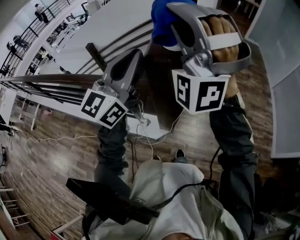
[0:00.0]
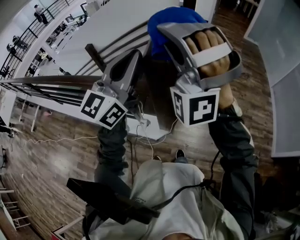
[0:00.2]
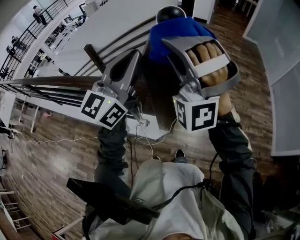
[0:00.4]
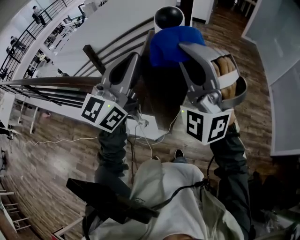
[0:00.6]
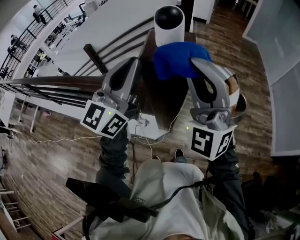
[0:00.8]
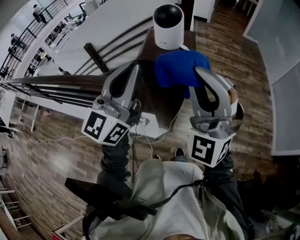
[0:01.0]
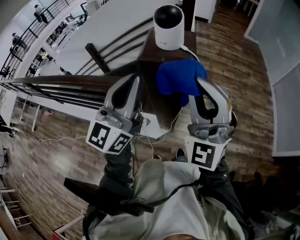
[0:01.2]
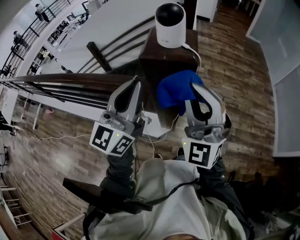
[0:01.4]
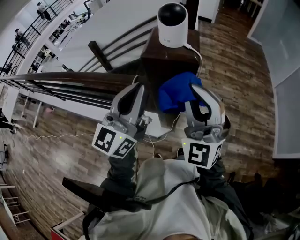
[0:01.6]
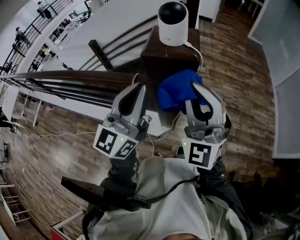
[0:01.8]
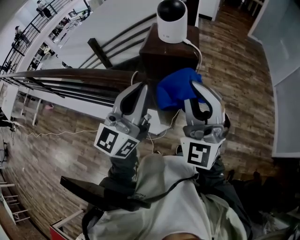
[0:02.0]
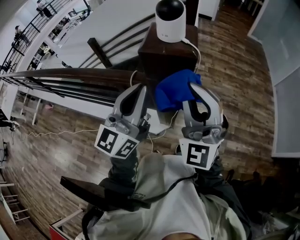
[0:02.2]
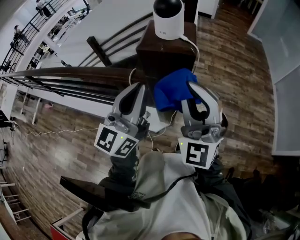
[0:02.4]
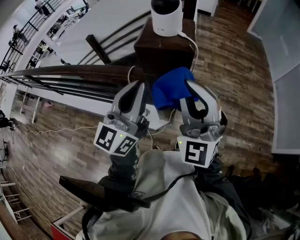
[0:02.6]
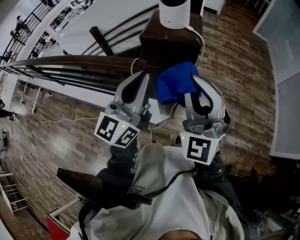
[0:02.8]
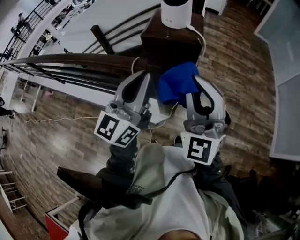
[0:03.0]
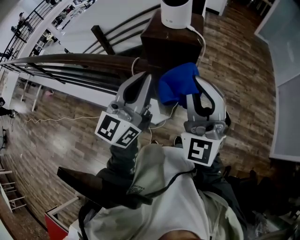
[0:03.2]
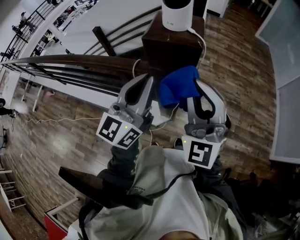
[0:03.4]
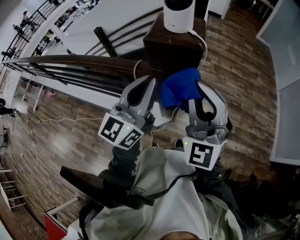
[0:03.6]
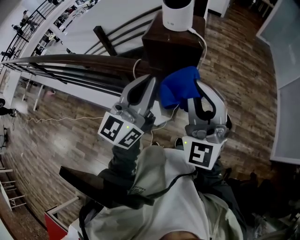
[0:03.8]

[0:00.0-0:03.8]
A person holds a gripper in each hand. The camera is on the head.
0:00.0 to 0:01.2: The right gripper goes some 15 cm downward, backward and to the right, and twists about 40 degrees clockwise, seen from behind, while the left gripper shifts approximately 5 cm backward.
0:01.2 to 0:02.6: The left gripper shifts by approximately 5 cm.
0:02.6 to 0:03.8: There are only small adjustments of the grippers.

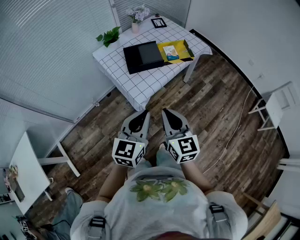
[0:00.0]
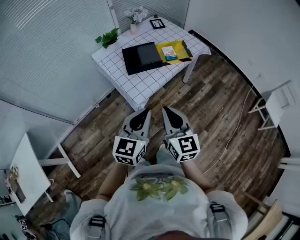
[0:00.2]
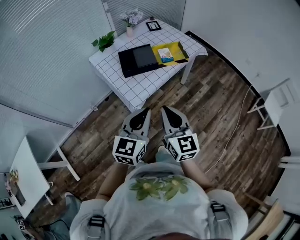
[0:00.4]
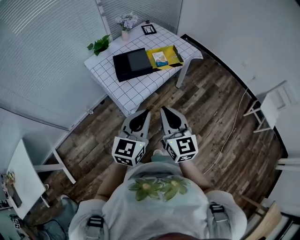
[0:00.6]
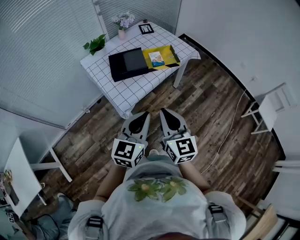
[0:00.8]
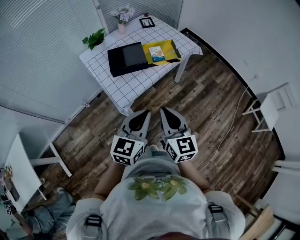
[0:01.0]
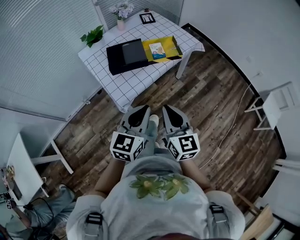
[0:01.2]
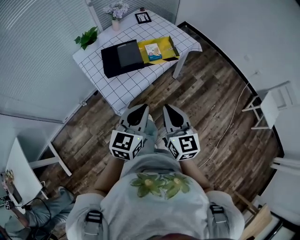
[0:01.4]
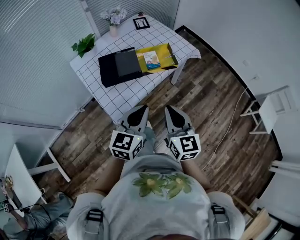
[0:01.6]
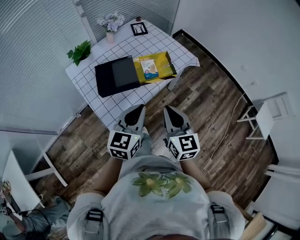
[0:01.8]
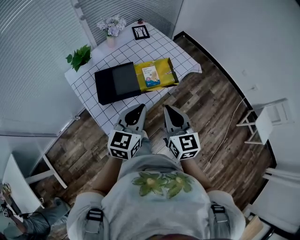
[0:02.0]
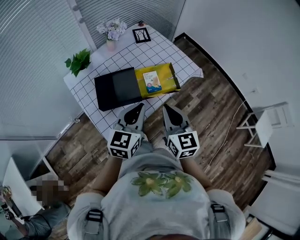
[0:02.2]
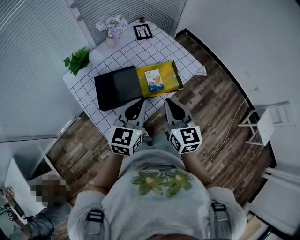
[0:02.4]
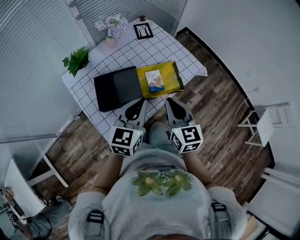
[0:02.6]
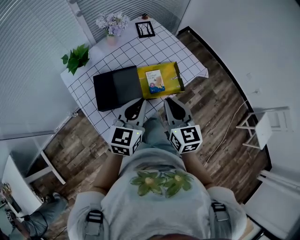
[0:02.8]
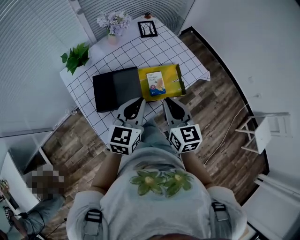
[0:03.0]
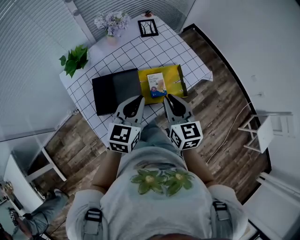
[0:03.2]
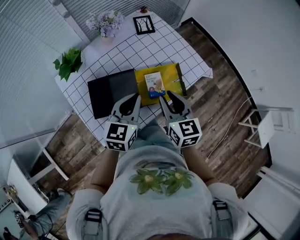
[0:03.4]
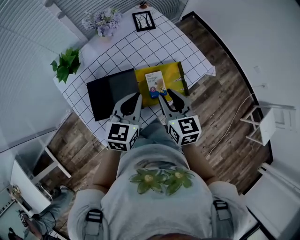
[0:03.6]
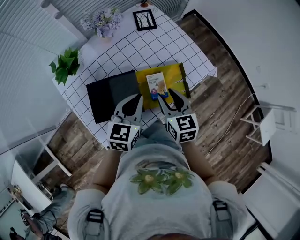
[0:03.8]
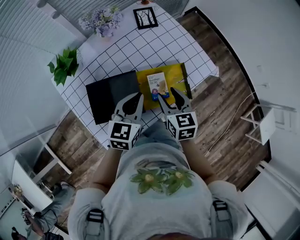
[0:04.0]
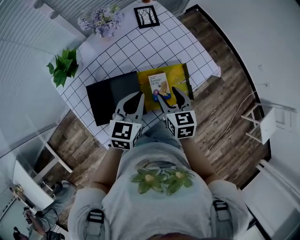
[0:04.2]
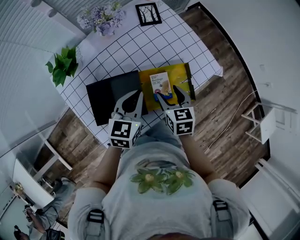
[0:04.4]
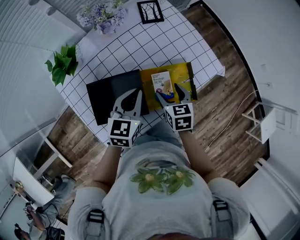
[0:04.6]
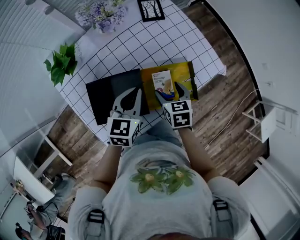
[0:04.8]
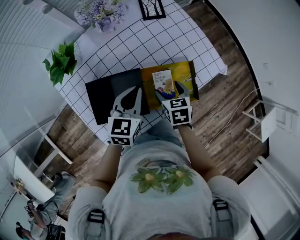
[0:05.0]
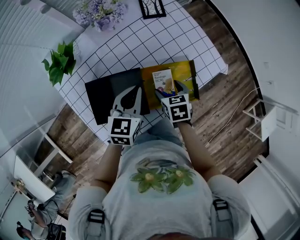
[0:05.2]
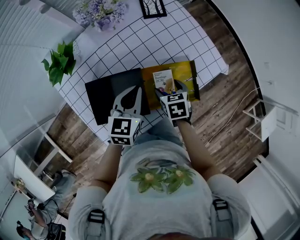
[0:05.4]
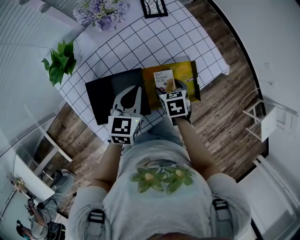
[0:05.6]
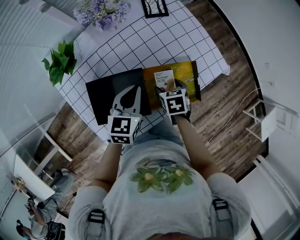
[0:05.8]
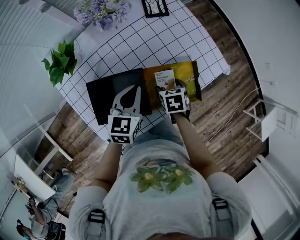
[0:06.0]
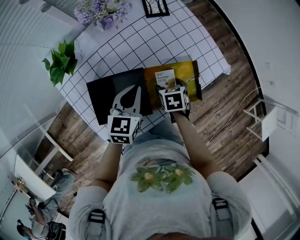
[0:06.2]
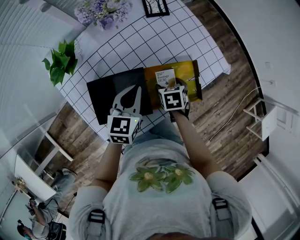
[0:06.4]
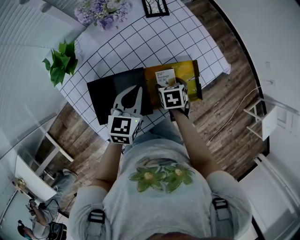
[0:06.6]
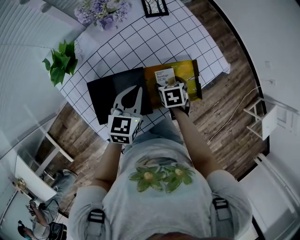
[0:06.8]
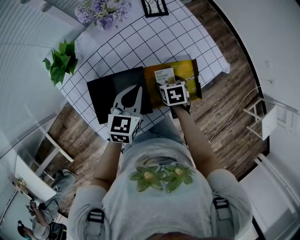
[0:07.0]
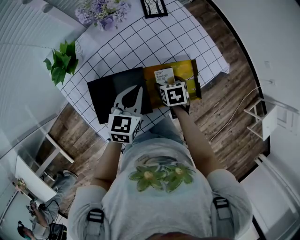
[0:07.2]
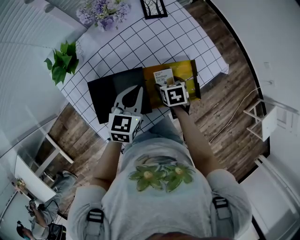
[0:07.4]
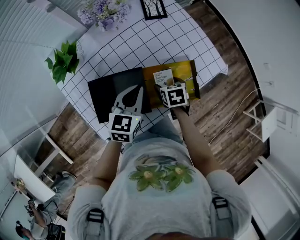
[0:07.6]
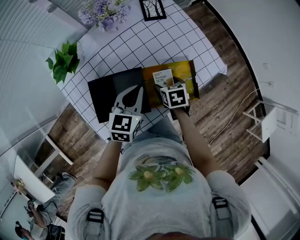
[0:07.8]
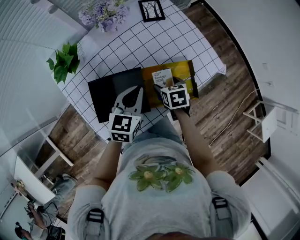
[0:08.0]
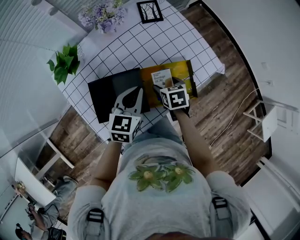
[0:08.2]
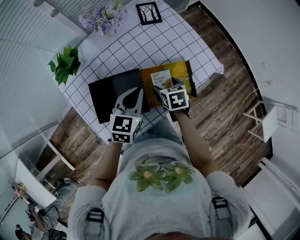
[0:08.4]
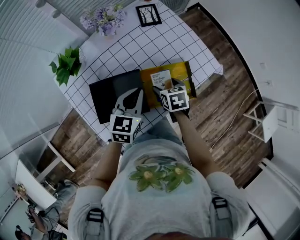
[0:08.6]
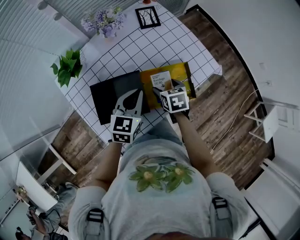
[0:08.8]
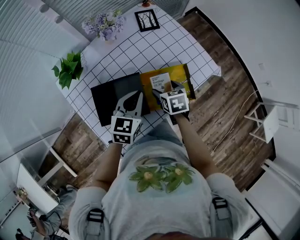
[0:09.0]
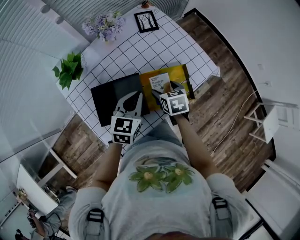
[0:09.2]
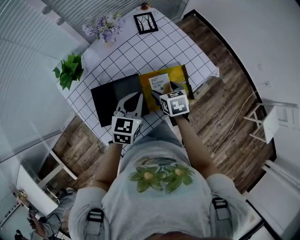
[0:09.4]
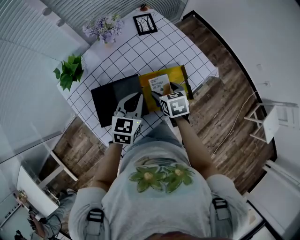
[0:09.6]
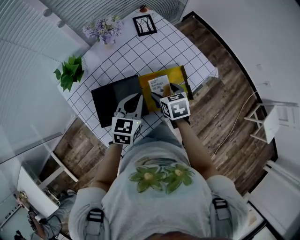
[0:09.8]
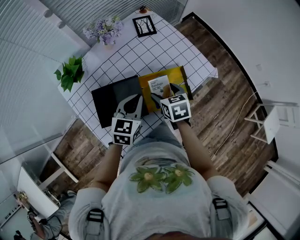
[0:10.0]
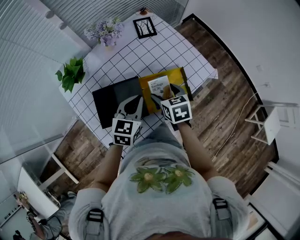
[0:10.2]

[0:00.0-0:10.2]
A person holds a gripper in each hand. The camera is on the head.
0:00.0 to 0:01.4: Both grippers travel together to the right and forward, about 15 cm.
0:01.4 to 0:03.0: The two grippers go roughly 30 cm forward.
0:03.0 to 0:04.4: The right gripper travels downward and forward by about 20 cm, turns by roughly 20 degrees, and opens up. Meanwhile the left gripper heads forward and downward, covering about 15 cm.
0:04.4 to 0:05.8: The left gripper moves roughly 5 cm. Meanwhile the right gripper shifts approximately 10 cm downward, and changes its angle by some 20 degrees.
0:05.8 to 0:07.2: The grippers make only small movements.
0:07.2 to 0:08.8: The right gripper is displaced upward by approximately 5 cm.
0:08.8 to 0:10.2: The right gripper moves upward, about 5 cm.

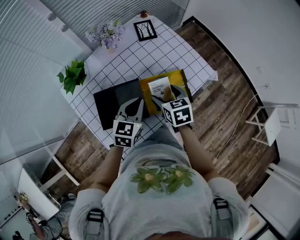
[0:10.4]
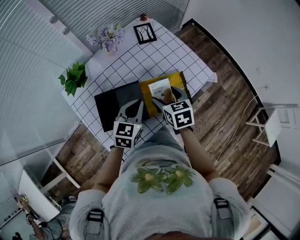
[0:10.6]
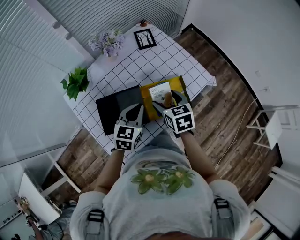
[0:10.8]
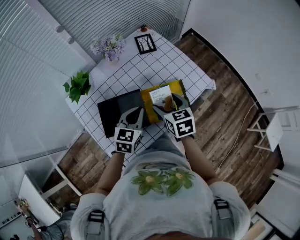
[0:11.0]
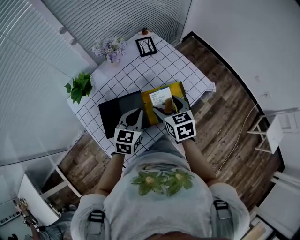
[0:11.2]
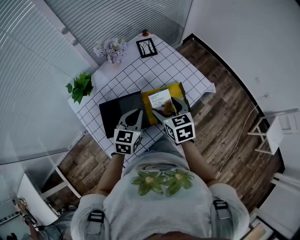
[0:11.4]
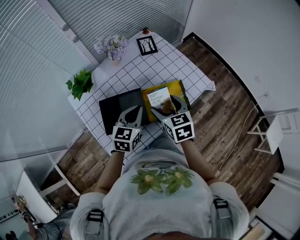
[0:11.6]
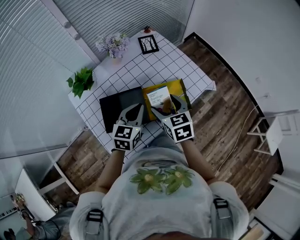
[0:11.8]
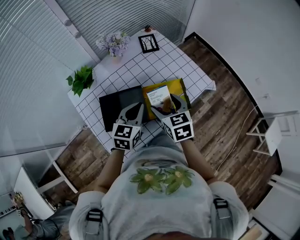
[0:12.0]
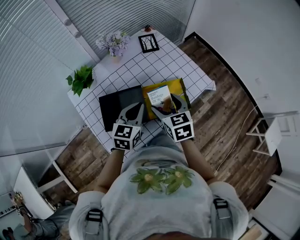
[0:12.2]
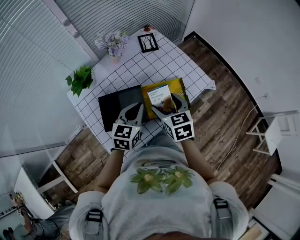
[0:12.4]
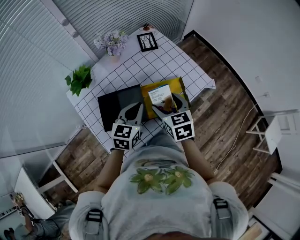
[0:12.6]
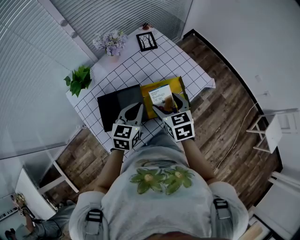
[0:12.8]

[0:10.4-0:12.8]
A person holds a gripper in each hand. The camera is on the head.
0:10.4 to 0:11.6: The right gripper goes some 5 cm upward.
0:11.6 to 0:12.8: The two grippers keep their place.

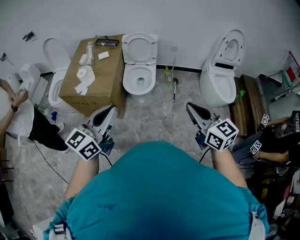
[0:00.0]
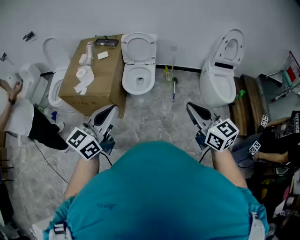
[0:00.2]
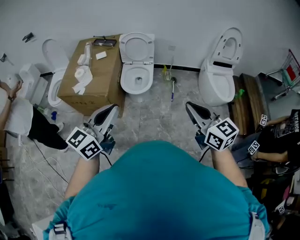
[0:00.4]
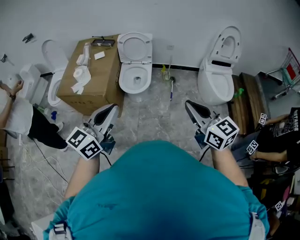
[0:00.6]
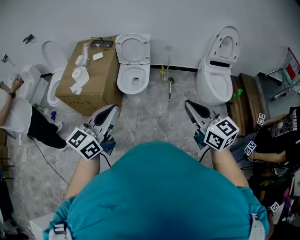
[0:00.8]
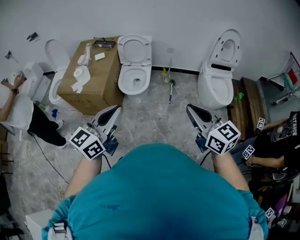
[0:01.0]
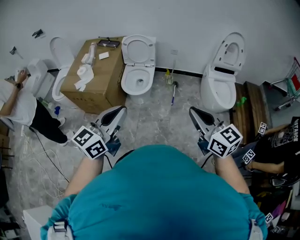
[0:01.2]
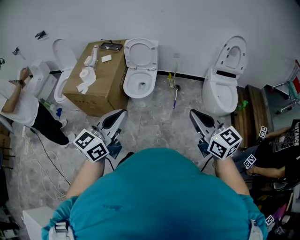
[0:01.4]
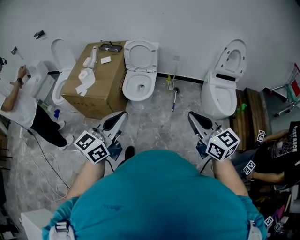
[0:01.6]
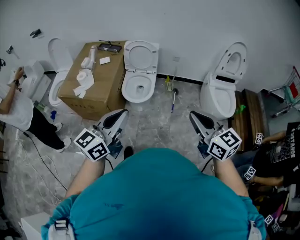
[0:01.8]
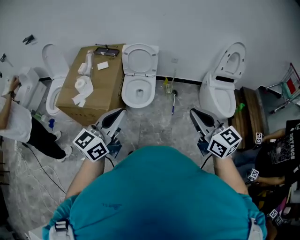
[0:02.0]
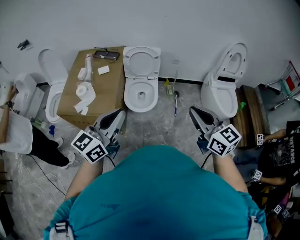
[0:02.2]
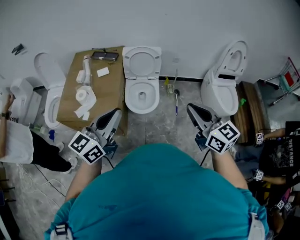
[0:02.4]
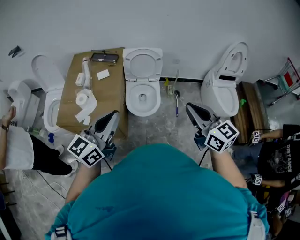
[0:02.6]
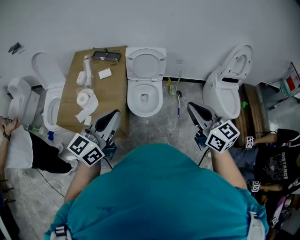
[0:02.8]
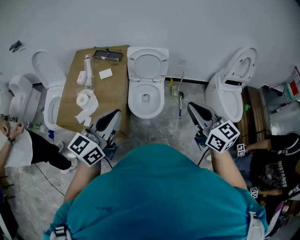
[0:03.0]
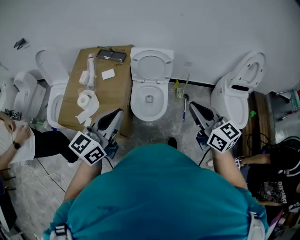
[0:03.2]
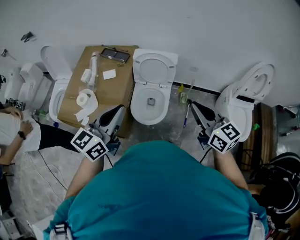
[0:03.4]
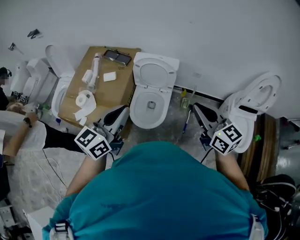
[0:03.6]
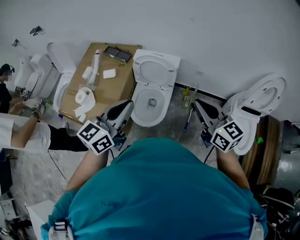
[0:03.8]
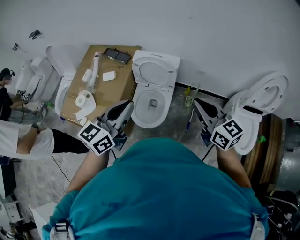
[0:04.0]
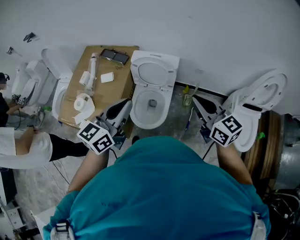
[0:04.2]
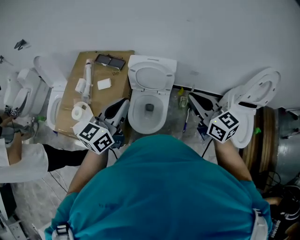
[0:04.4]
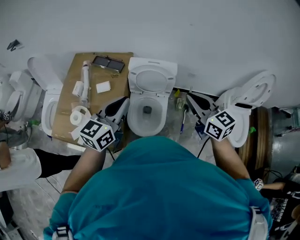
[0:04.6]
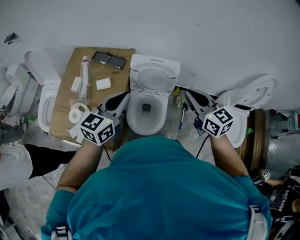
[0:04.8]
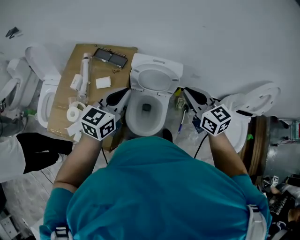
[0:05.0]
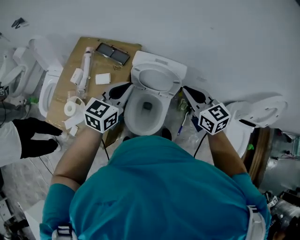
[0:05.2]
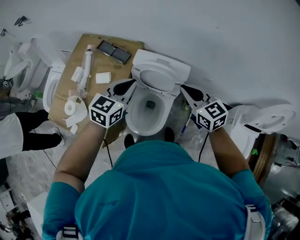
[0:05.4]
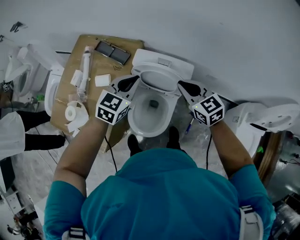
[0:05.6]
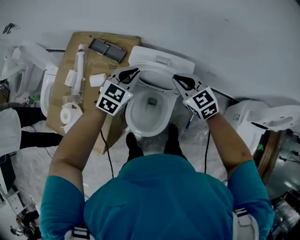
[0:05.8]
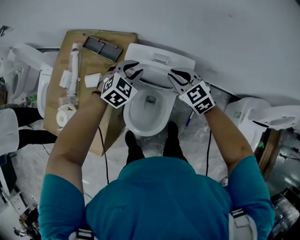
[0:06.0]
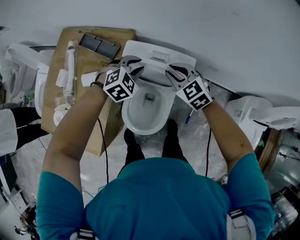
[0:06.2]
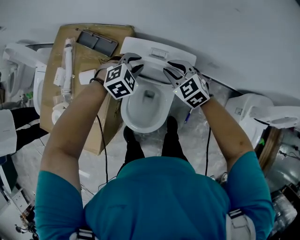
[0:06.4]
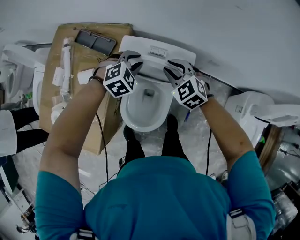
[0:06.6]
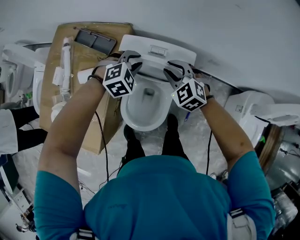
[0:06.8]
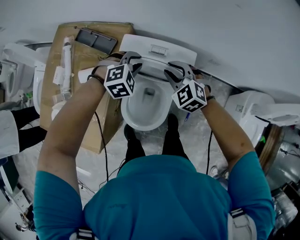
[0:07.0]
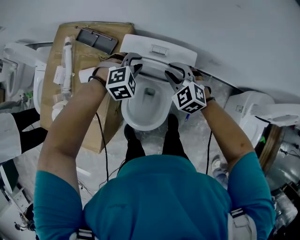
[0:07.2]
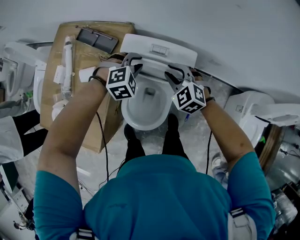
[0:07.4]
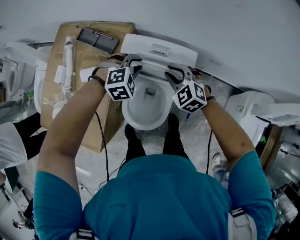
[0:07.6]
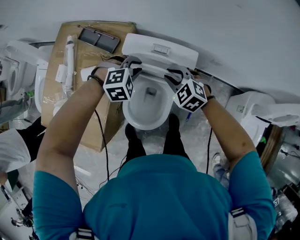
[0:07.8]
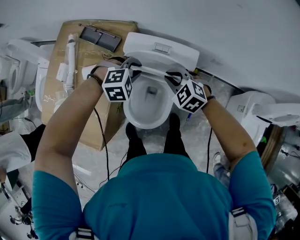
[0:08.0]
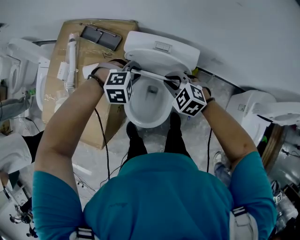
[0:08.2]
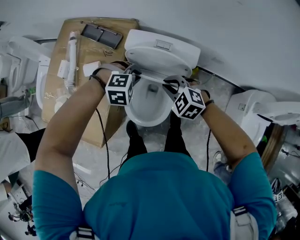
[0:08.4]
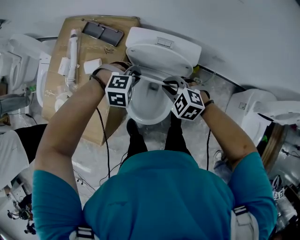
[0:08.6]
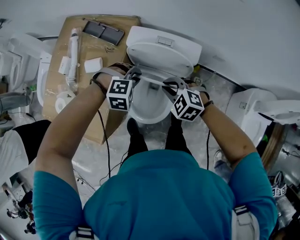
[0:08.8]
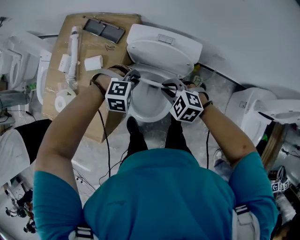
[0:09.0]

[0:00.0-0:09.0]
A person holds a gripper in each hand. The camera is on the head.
0:00.0 to 0:01.6: Both grippers move to the right, approximately 10 cm.
0:01.6 to 0:03.0: The grippers both shift forward and to the left by approximately 35 cm.
0:03.0 to 0:04.4: The two grippers go about 25 cm forward and to the right.
0:04.4 to 0:06.0: The two grippers go some 40 cm forward and downward. The right gripper turns by some 30 degrees. The left gripper tilts its fingers some 40 degrees downward.
0:06.0 to 0:07.6: Both grippers travel together downward, about 5 cm. The left gripper swivels roughly 30 degrees.
0:07.6 to 0:09.0: The two grippers go roughly 10 cm backward.
